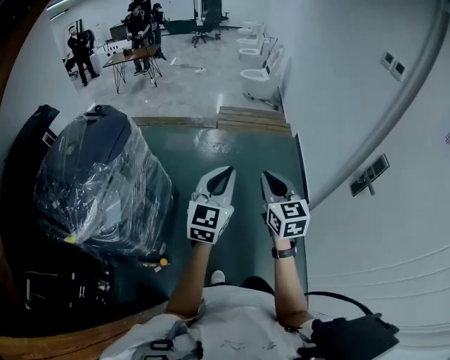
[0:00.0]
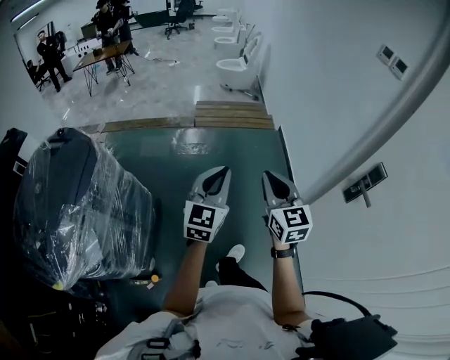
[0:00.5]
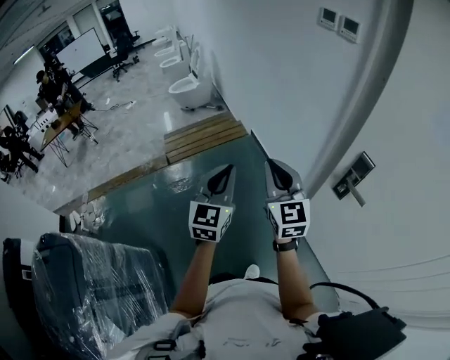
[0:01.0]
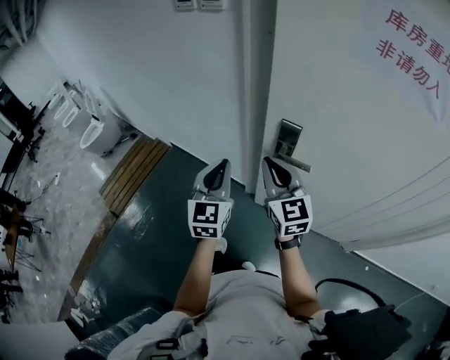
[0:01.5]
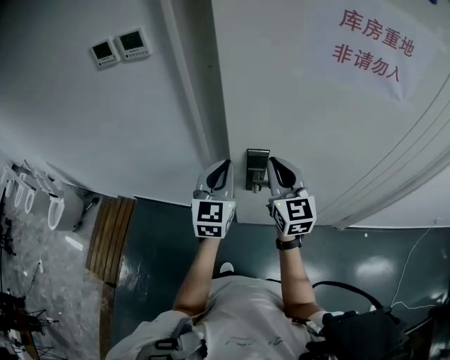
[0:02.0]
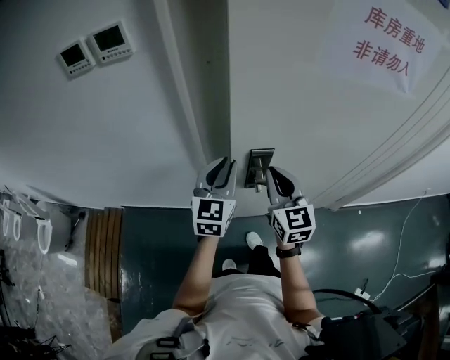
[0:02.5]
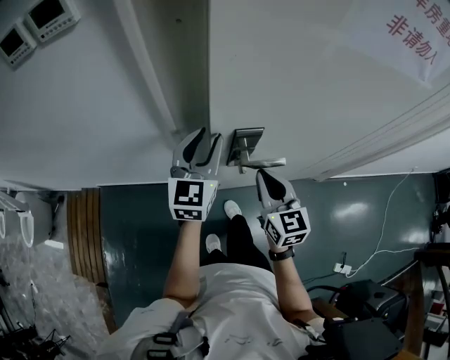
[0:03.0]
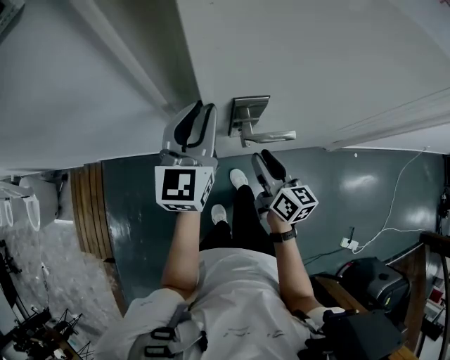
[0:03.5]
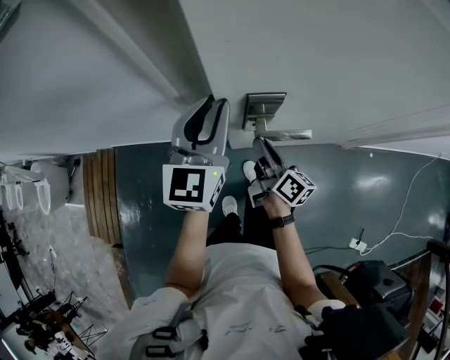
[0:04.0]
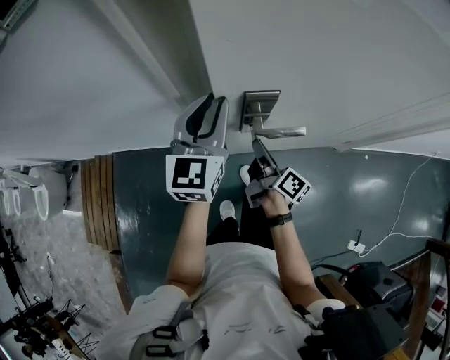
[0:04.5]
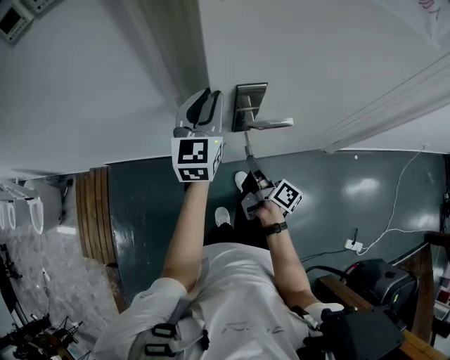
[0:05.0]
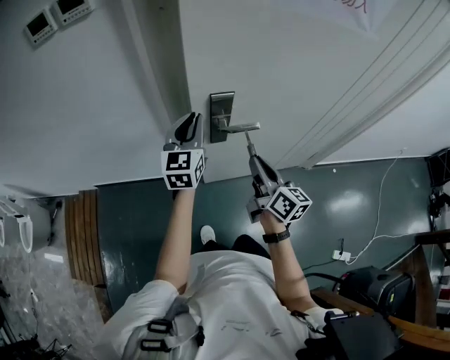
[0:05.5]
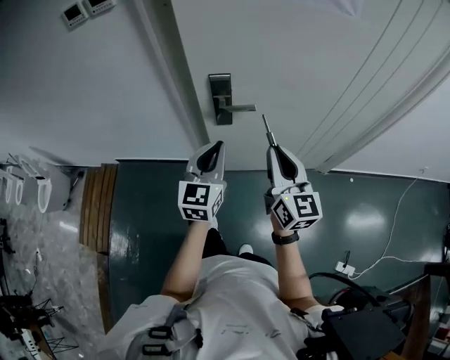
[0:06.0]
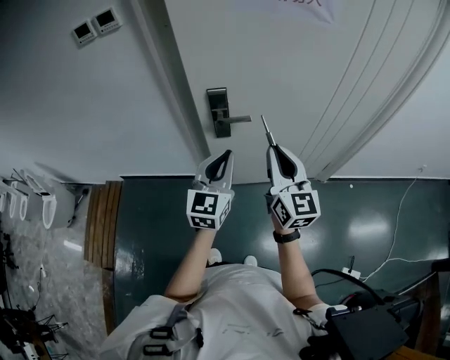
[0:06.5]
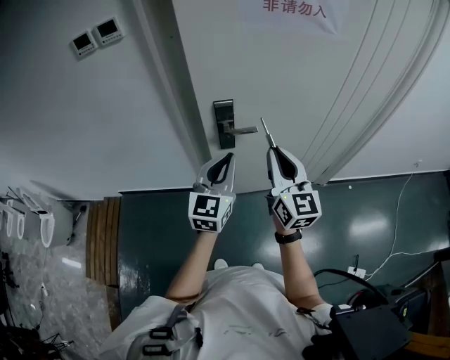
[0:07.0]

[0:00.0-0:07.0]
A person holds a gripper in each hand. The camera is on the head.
0:00.0 to 0:02.0: Both grippers are carried roughly 60 cm. The right gripper swivels about 90 degrees. The left gripper swivels approximately 80 degrees.
0:02.0 to 0:03.5: The right gripper is displaced downward by roughly 25 cm, rolls clockwise, seen from behind, by approximately 40 degrees, and opens up. Meanwhile the left gripper heads forward and downward, covering some 10 cm.
0:03.5 to 0:05.0: The right gripper shifts by about 5 cm, rotates roughly 40 degrees, and closes.
0:05.0 to 0:07.0: The left gripper goes roughly 25 cm backward and to the right. The right gripper goes some 30 cm upward, and rotates around the line of its fingers by roughly 70 degrees, counterclockwise from behind.

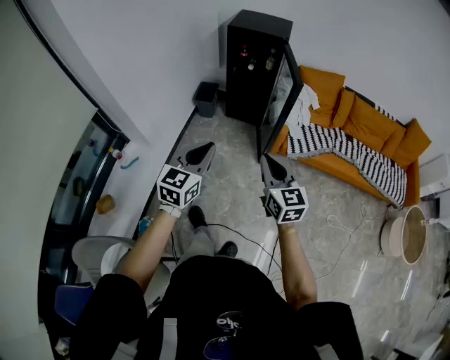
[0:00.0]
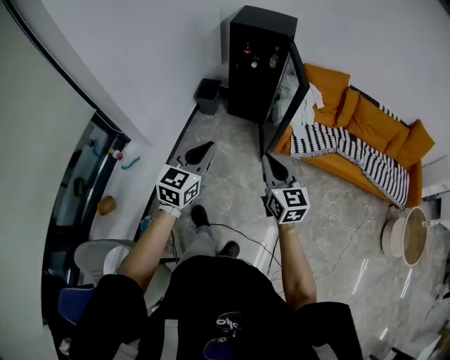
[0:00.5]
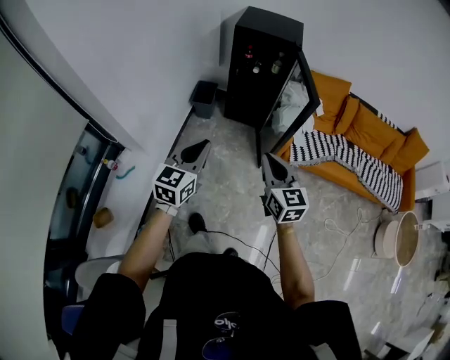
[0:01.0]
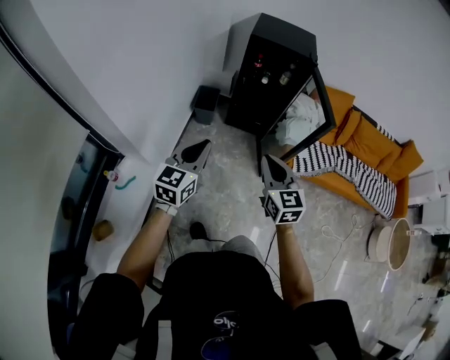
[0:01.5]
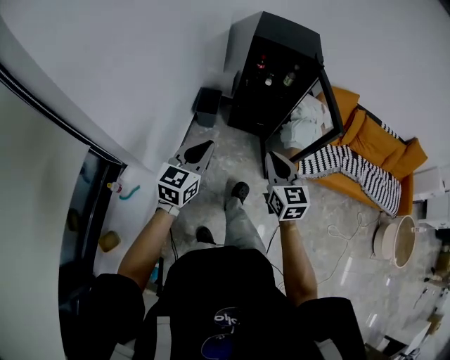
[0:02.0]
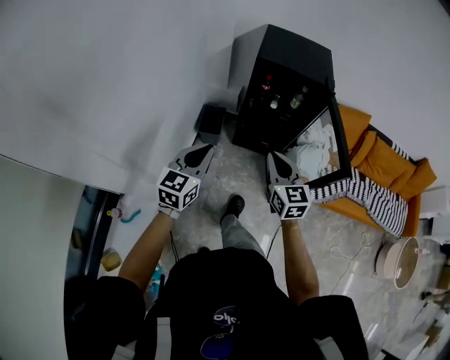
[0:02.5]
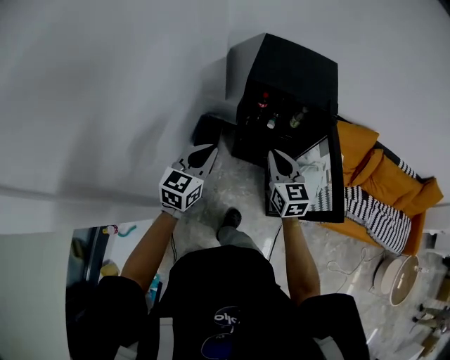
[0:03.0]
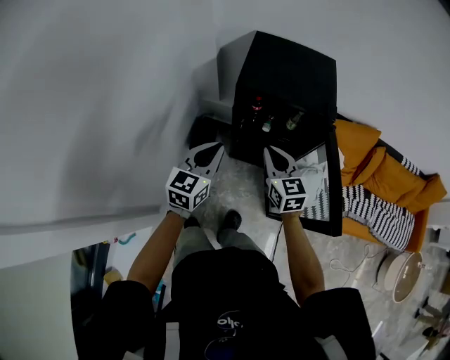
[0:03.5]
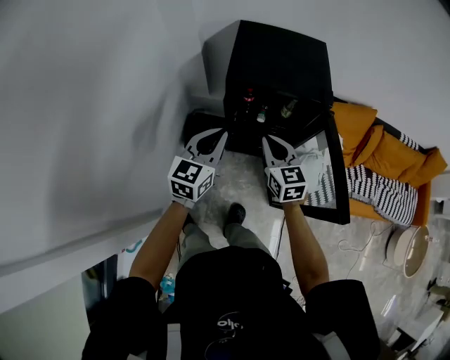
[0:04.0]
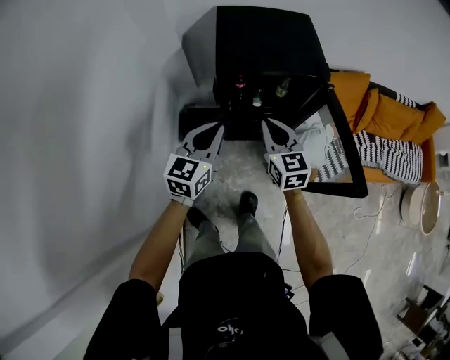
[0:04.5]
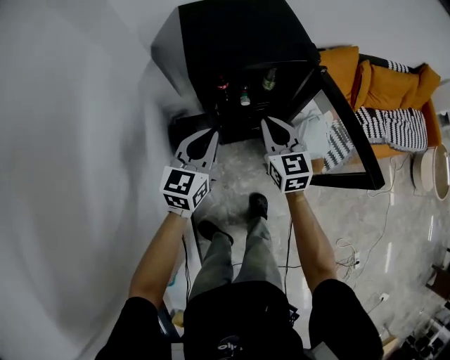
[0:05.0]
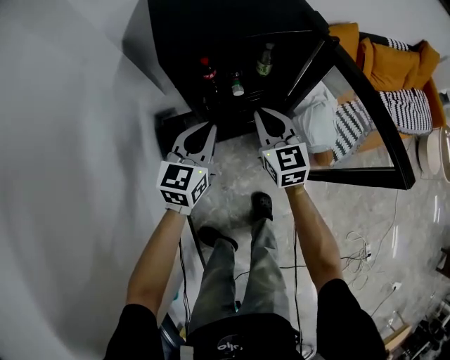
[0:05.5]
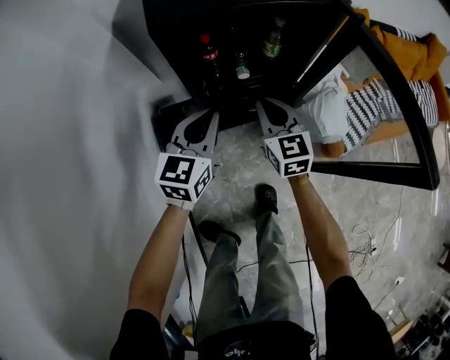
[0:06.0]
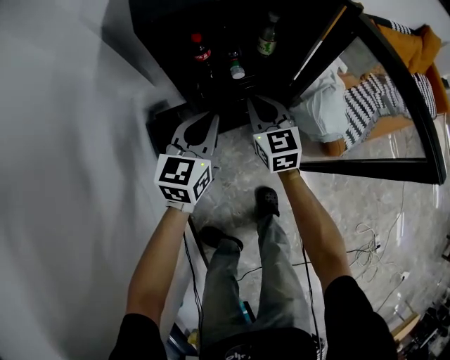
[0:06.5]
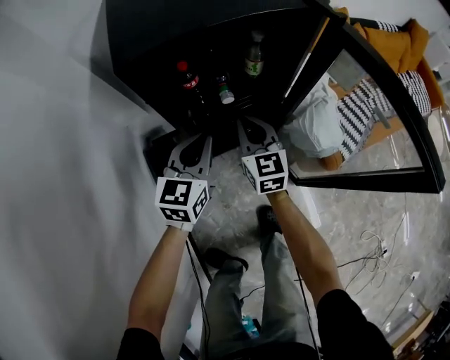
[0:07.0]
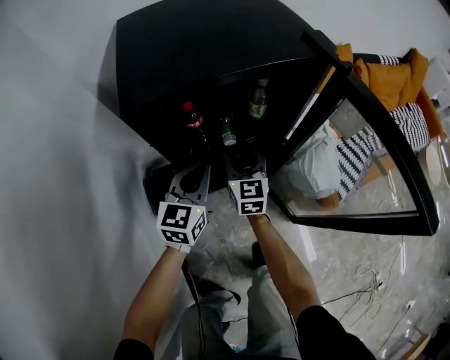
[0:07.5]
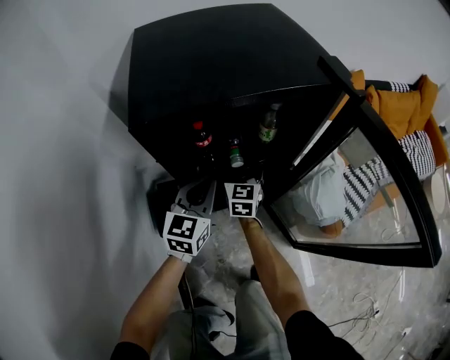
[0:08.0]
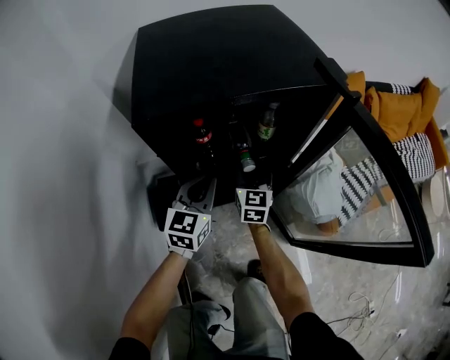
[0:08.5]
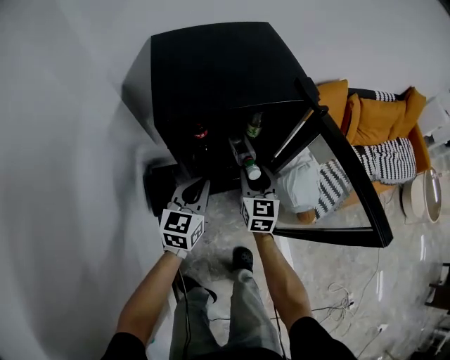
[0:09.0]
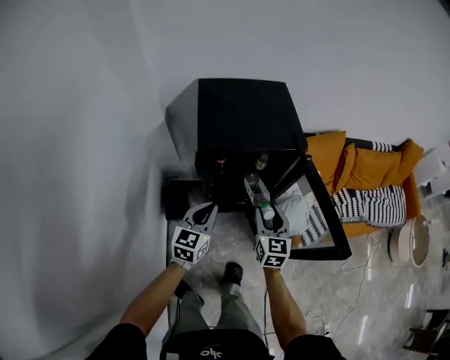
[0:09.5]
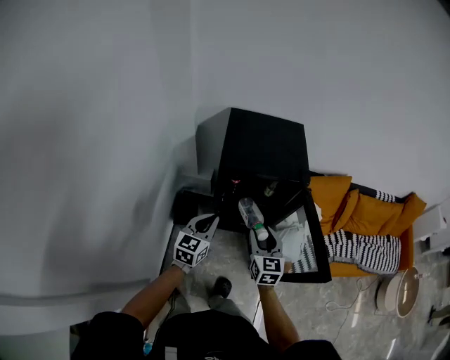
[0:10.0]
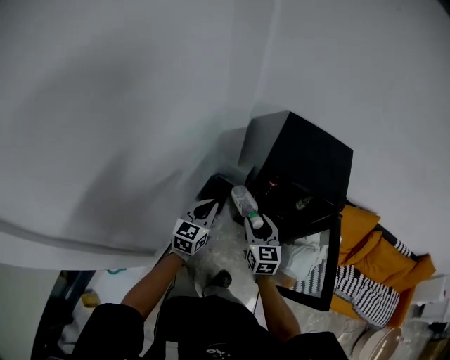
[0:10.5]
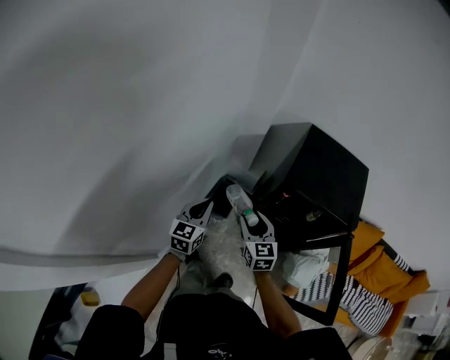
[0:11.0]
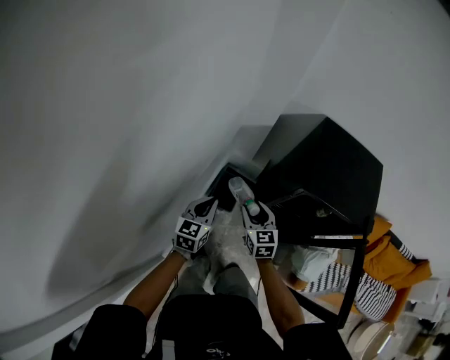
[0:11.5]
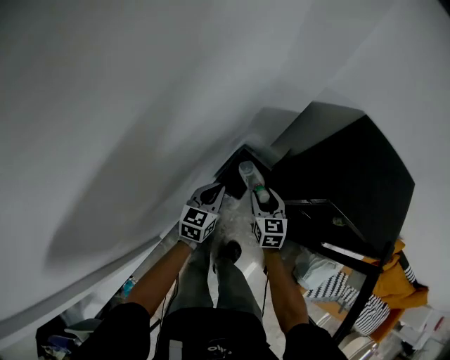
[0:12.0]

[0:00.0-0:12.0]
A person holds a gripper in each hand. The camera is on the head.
0:00.0 to 0:02.0: The two grippers go roughly 35 cm forward and to the left.
0:02.0 to 0:04.0: The pair of grippers is taken forward, approximately 50 cm.
0:04.0 to 0:06.0: The two grippers go roughly 25 cm downward. The right gripper swivels roughly 20 degrees.
0:06.0 to 0:08.0: The right gripper goes approximately 20 cm forward and downward, and opens. Meanwhile the left gripper travels forward and downward by about 10 cm.
0:08.0 to 0:10.0: Both grippers move upward and backward, roughly 40 cm. The right gripper swivels some 20 degrees.
0:10.0 to 0:12.0: The left gripper moves approximately 35 cm, and turns by roughly 30 degrees, while the right gripper ends up roughly 40 cm from where it was, and rotates roughly 40 degrees.

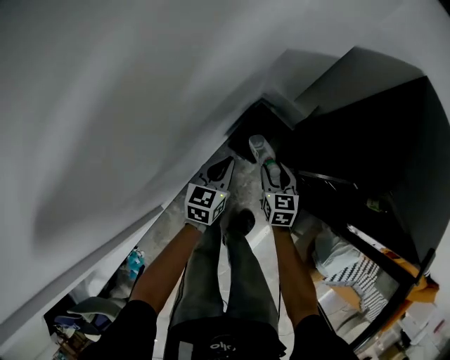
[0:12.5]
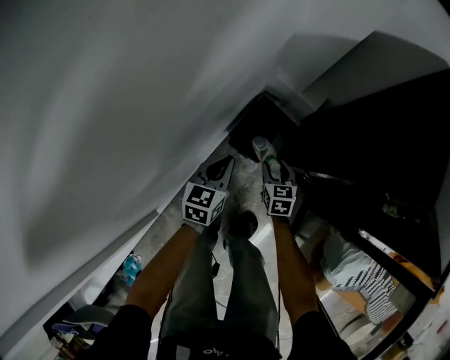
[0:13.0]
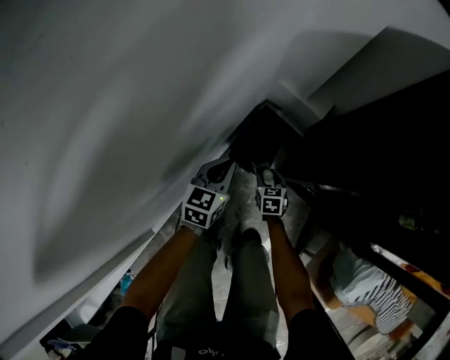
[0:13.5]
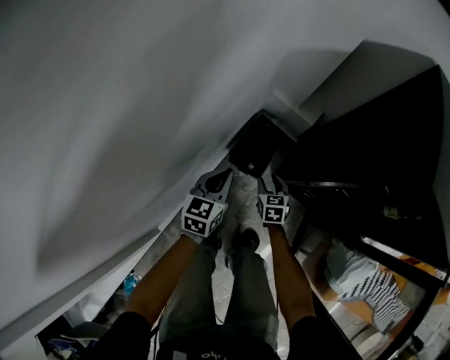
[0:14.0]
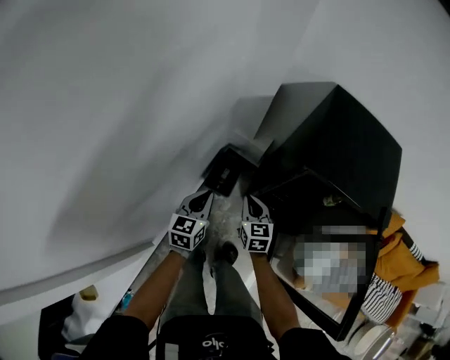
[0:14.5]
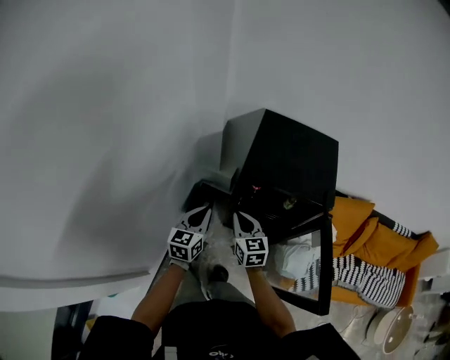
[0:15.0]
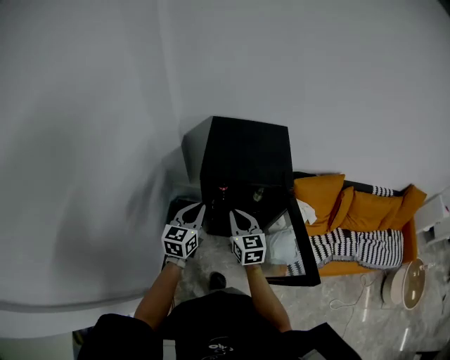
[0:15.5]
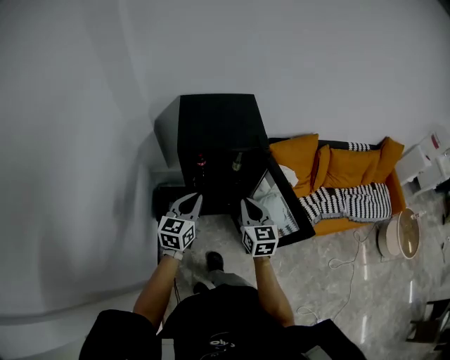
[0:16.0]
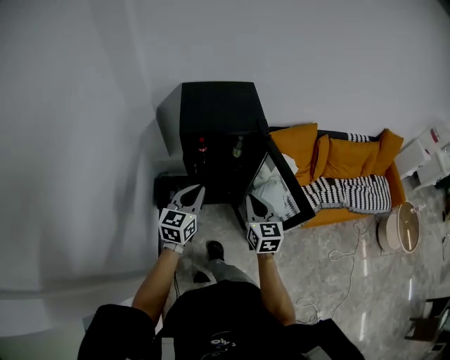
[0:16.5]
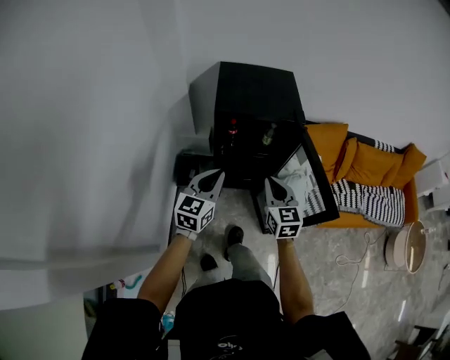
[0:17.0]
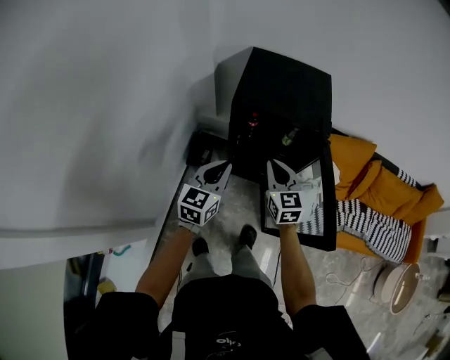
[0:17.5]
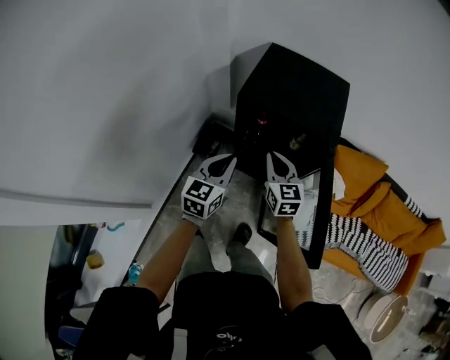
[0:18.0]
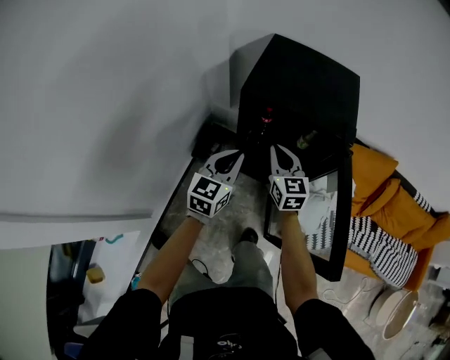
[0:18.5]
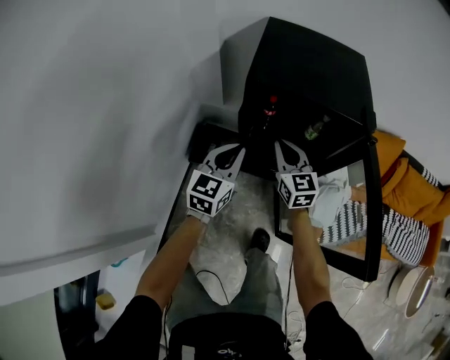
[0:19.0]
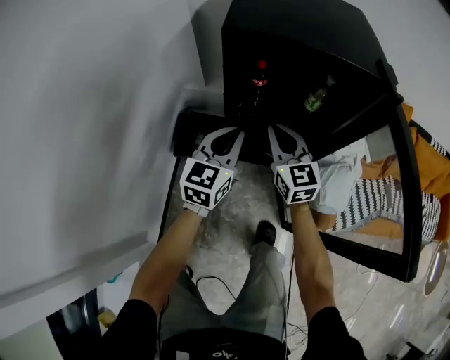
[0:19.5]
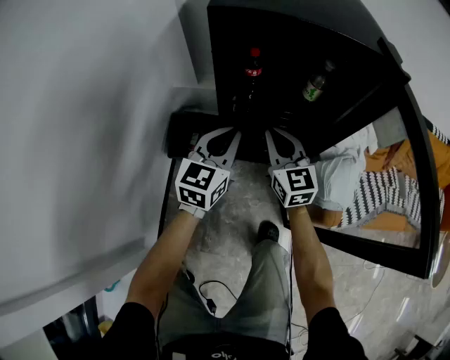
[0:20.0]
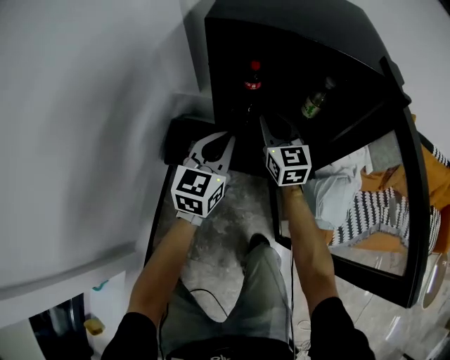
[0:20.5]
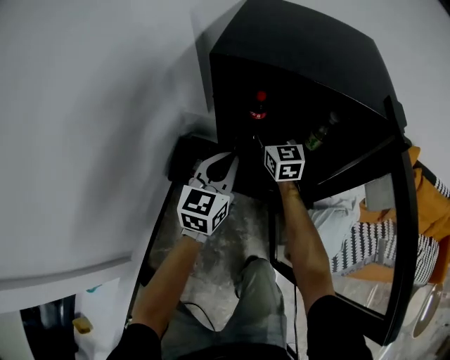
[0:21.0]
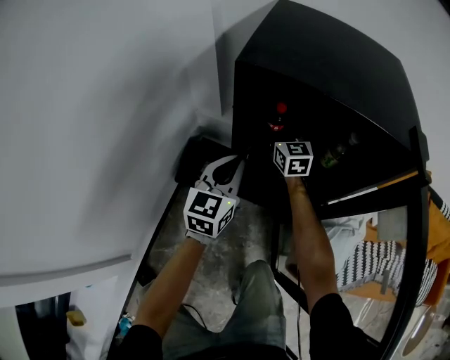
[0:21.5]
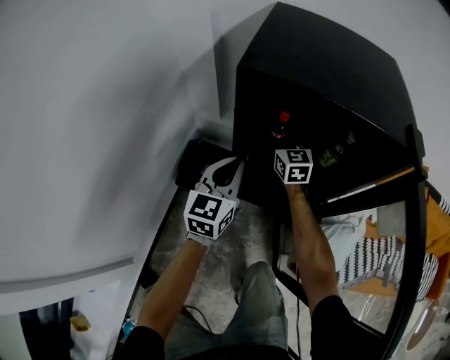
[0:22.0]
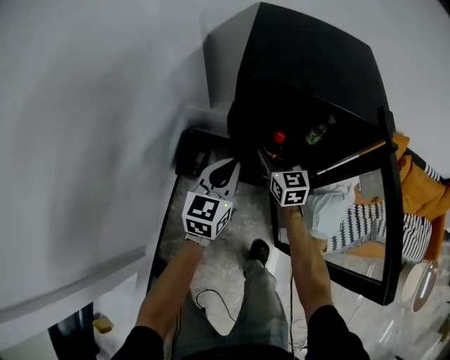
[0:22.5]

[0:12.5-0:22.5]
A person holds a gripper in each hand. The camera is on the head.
0:12.5 to 0:14.5: The right gripper shifts approximately 5 cm backward, moves about 30 cm downward and comes back, and closes; the left gripper moves upward and backward, some 15 cm.
0:14.5 to 0:16.5: The right gripper moves roughly 50 cm, and changes its angle by roughly 30 degrees. Meanwhile the left gripper changes place by roughly 35 cm, and turns by some 40 degrees.
0:16.5 to 0:18.5: The left gripper heads downward, covering approximately 10 cm. The right gripper ends up some 25 cm from where it was, and rotates about 30 degrees.
0:18.5 to 0:20.5: The left gripper moves downward, some 20 cm; the right gripper heads downward and forward, covering about 20 cm.
0:20.5 to 0:22.5: The left gripper shifts some 5 cm upward. The right gripper travels forward and back again, about 15 cm each way, and opens its fingers.
